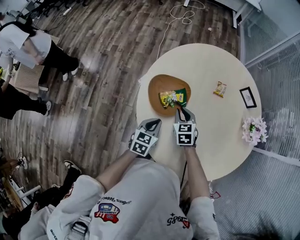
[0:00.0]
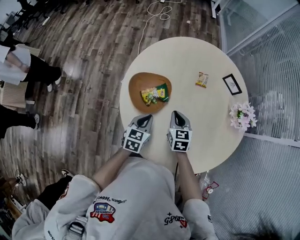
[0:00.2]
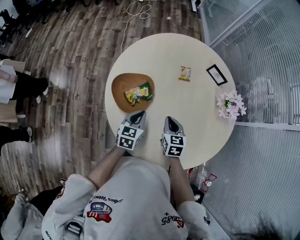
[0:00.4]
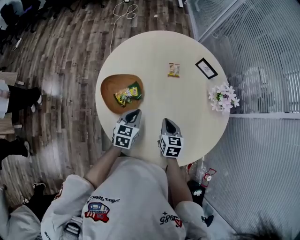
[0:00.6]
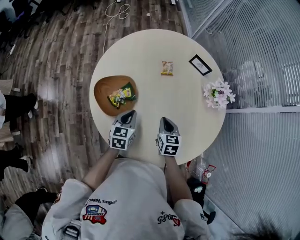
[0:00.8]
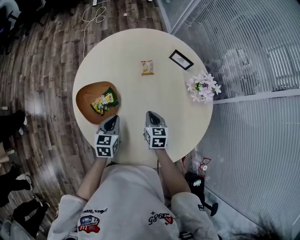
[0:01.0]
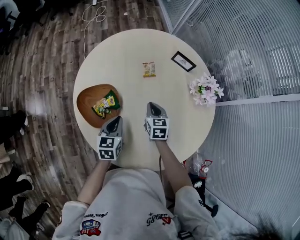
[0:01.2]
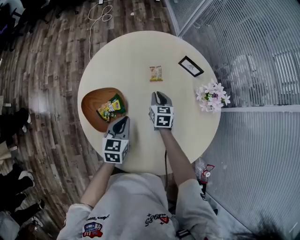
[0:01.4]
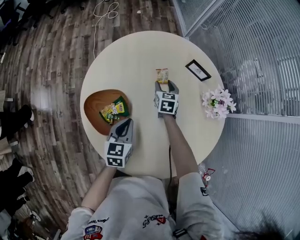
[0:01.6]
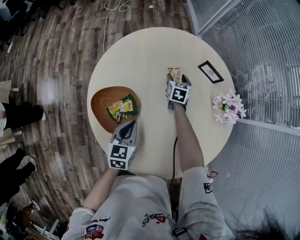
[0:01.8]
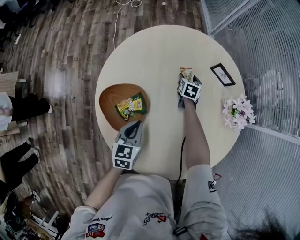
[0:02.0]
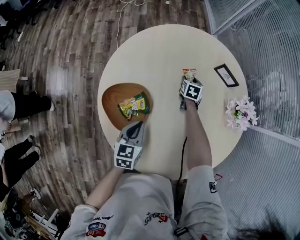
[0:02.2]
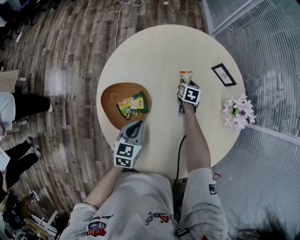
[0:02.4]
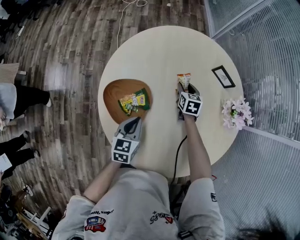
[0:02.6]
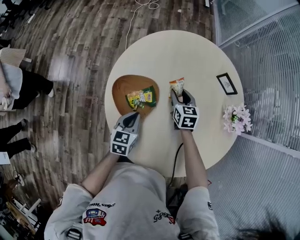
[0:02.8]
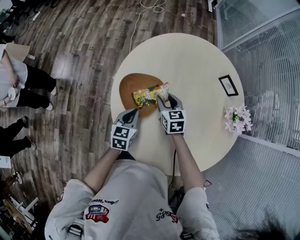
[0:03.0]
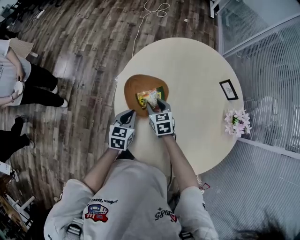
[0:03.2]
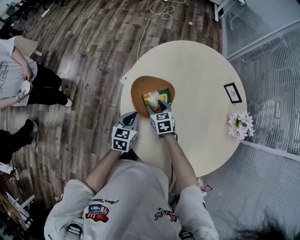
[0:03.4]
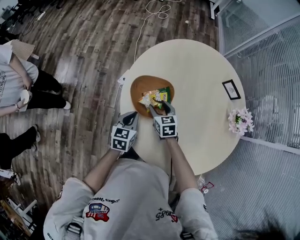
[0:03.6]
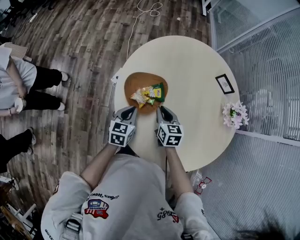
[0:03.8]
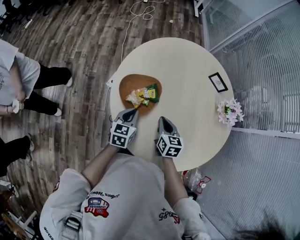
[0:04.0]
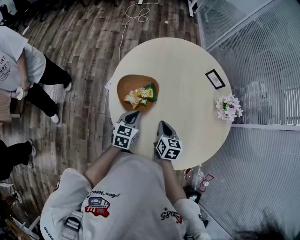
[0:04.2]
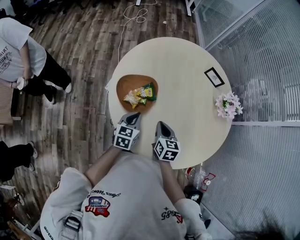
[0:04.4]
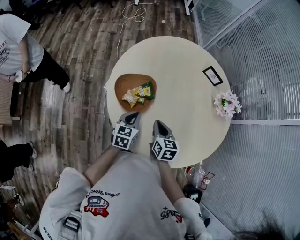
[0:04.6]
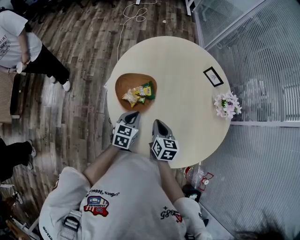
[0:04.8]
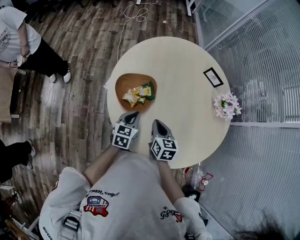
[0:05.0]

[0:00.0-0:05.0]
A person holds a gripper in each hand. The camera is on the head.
0:00.0 to 0:01.6: The right gripper shifts some 30 cm forward and to the right, changes its angle by some 30 degrees, and opens its fingers. Meanwhile the left gripper goes some 15 cm forward and to the right.
0:01.6 to 0:03.4: The right gripper goes up and down, roughly 15 cm each way, reversing 2 times, and rotates about 40 degrees. The left gripper shifts by approximately 20 cm.
0:03.4 to 0:05.0: The left gripper moves to the right, approximately 5 cm. Meanwhile the right gripper heads backward, to the right and upward, covering approximately 20 cm, rotates about 30 degrees, and closes up.

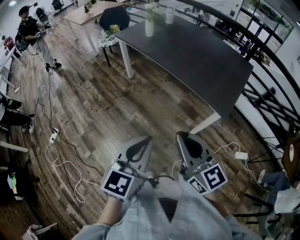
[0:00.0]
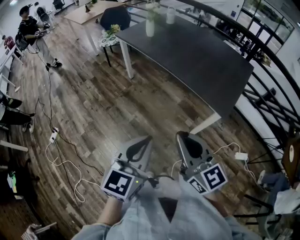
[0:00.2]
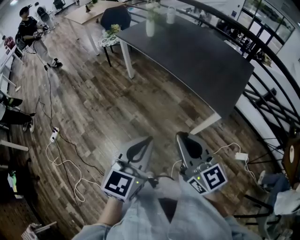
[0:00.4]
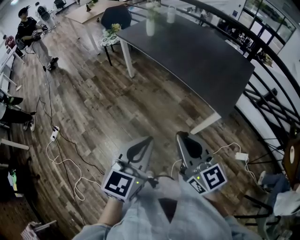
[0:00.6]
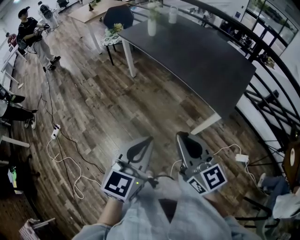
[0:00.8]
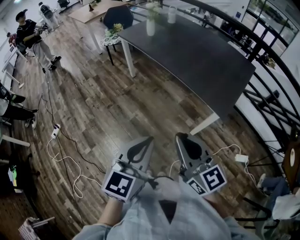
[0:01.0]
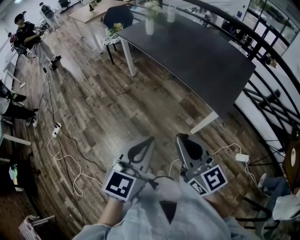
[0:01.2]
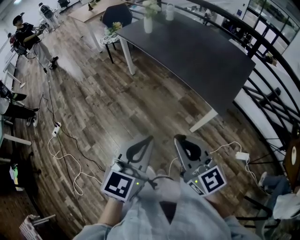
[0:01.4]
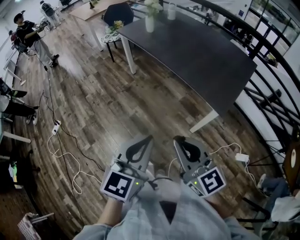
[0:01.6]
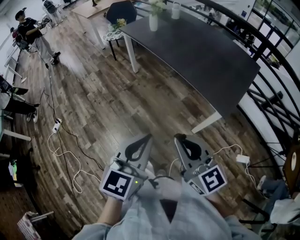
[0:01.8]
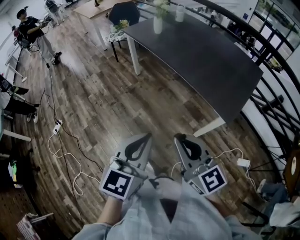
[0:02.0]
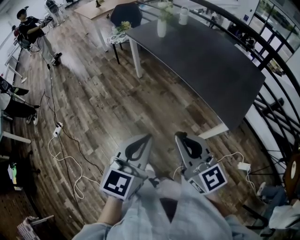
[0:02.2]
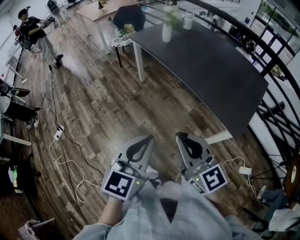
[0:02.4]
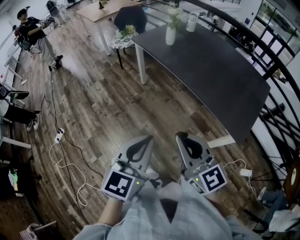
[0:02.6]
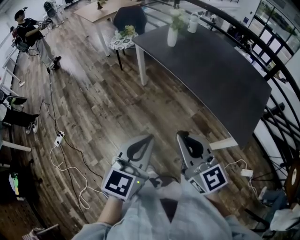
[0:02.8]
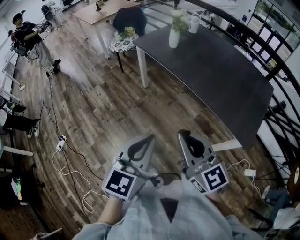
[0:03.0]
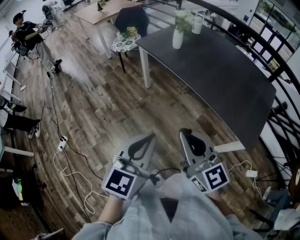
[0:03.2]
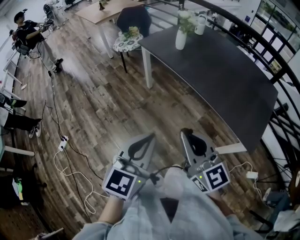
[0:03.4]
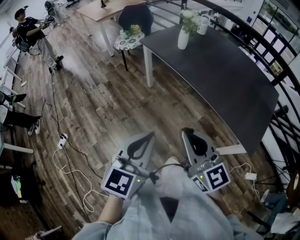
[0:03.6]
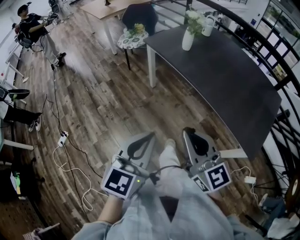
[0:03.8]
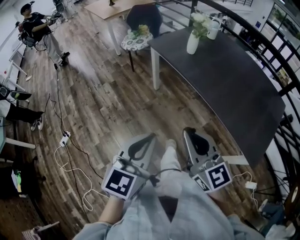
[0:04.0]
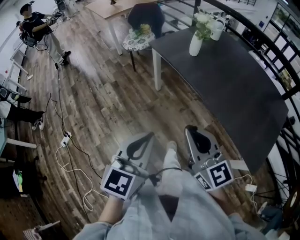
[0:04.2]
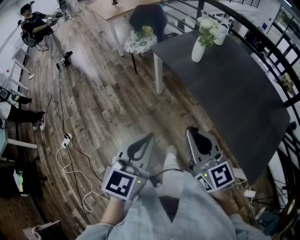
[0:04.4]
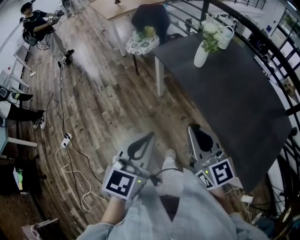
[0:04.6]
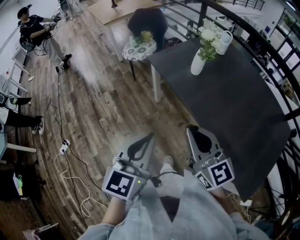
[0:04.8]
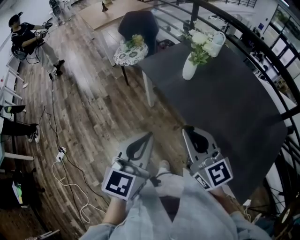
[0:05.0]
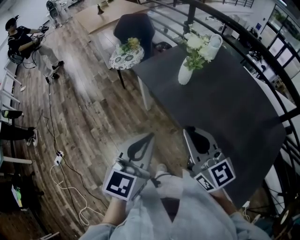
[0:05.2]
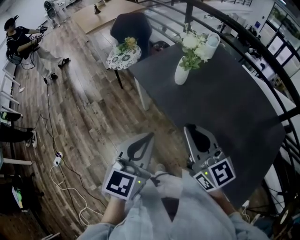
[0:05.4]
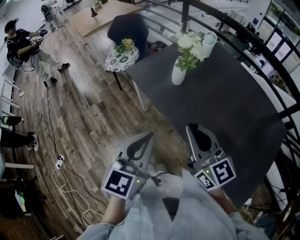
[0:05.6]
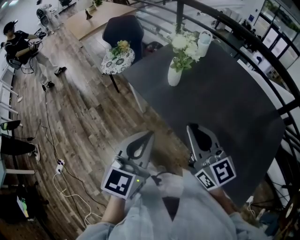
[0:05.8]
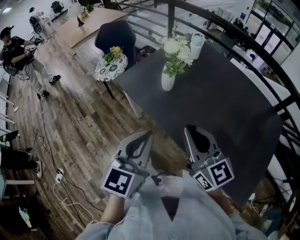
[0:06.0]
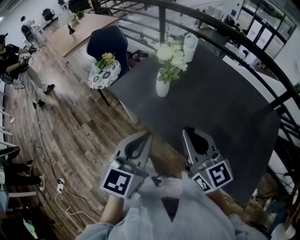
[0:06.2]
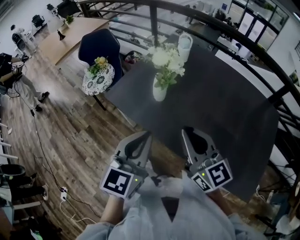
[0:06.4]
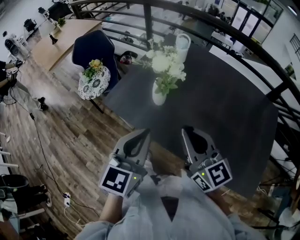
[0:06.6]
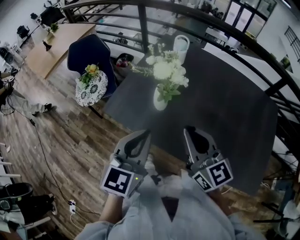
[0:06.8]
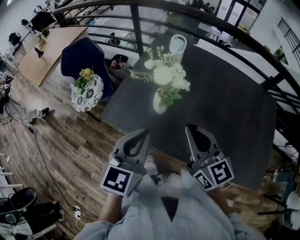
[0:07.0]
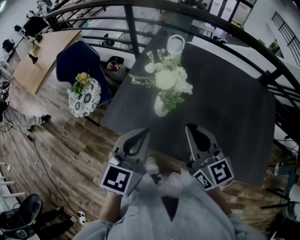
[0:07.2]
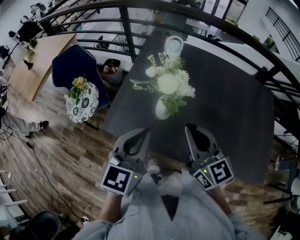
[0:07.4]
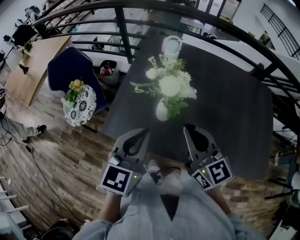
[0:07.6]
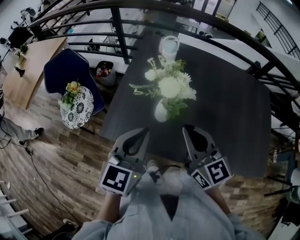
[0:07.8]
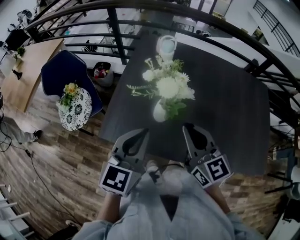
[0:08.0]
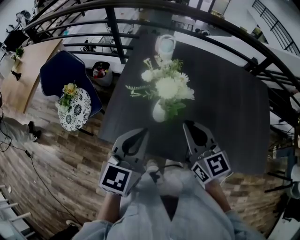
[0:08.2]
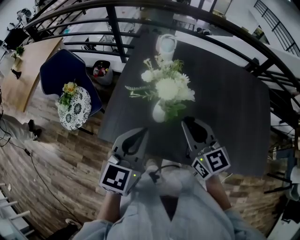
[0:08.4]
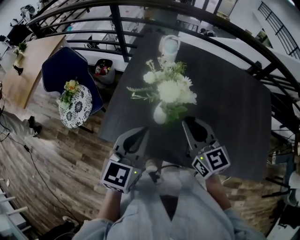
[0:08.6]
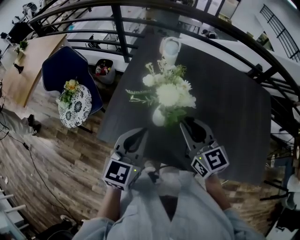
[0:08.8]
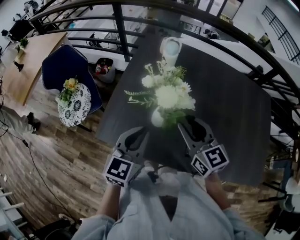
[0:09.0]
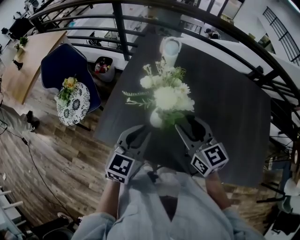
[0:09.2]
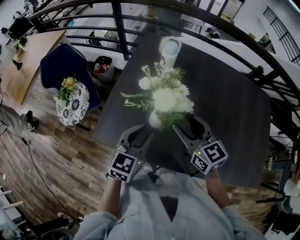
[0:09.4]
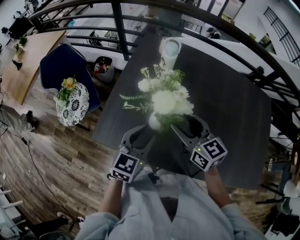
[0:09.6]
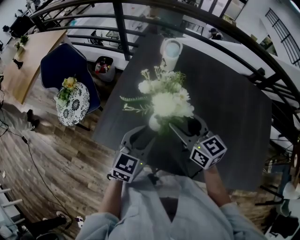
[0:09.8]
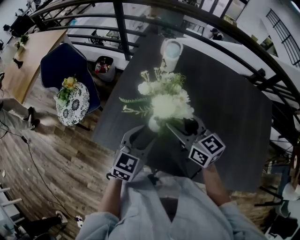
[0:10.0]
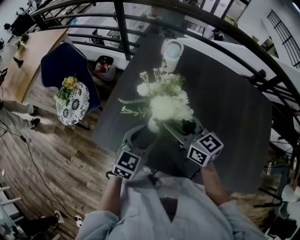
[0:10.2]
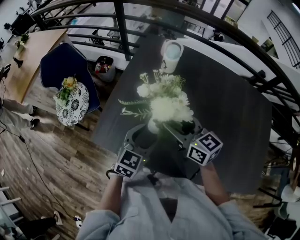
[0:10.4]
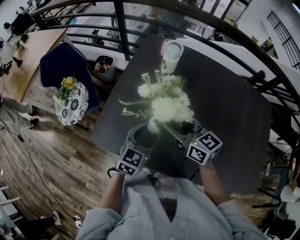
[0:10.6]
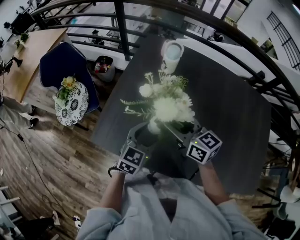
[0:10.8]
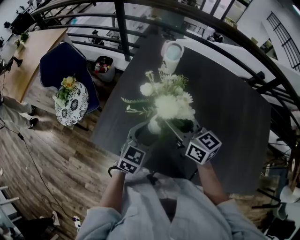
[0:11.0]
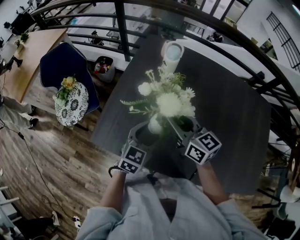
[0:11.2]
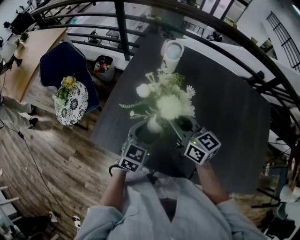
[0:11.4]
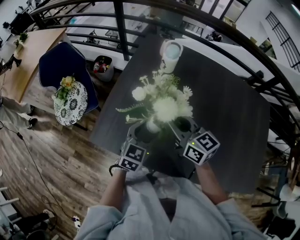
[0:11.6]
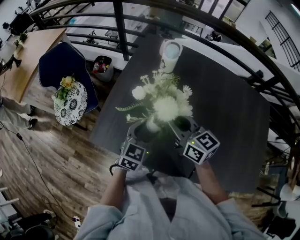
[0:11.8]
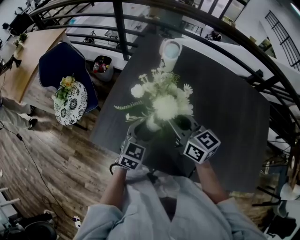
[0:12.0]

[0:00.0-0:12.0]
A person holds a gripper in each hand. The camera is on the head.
0:00.0 to 0:01.6: The left gripper goes approximately 5 cm to the right, while the right gripper ends up approximately 5 cm from where it was.
0:01.6 to 0:03.0: Both grippers travel together forward and to the left, some 30 cm.
0:03.0 to 0:04.4: Both grippers travel together forward, about 20 cm.
0:04.4 to 0:06.0: The grippers both shift forward and to the right by roughly 30 cm.
0:06.0 to 0:07.6: The right gripper ends up some 20 cm from where it was, and turns by roughly 30 degrees. Meanwhile the left gripper ends up approximately 25 cm from where it was, and rotates about 30 degrees.
0:07.6 to 0:09.0: The left gripper shifts some 5 cm downward, while the right gripper shifts roughly 10 cm forward and downward, and opens.
0:09.0 to 0:10.4: The left gripper is displaced downward by roughly 10 cm, and opens its fingers, while the right gripper travels forward by some 5 cm, and opens up.
0:10.4 to 0:12.0: The right gripper closes.

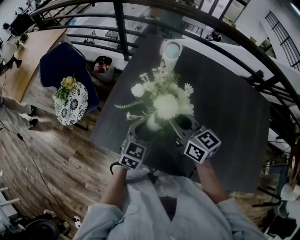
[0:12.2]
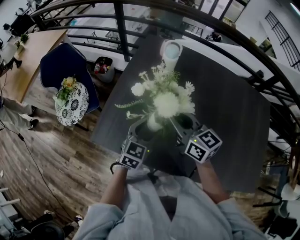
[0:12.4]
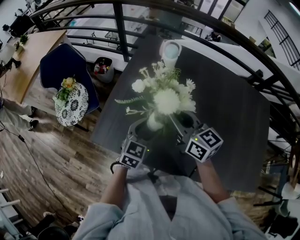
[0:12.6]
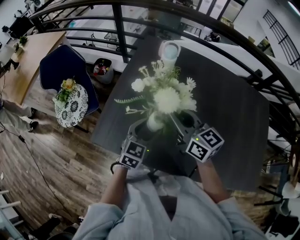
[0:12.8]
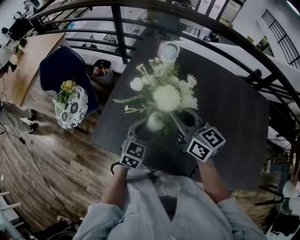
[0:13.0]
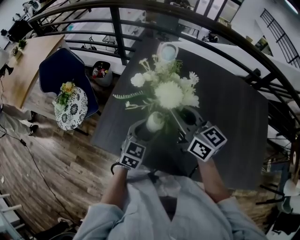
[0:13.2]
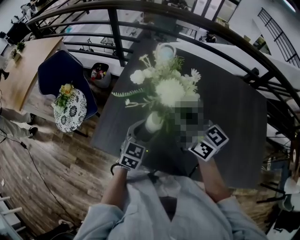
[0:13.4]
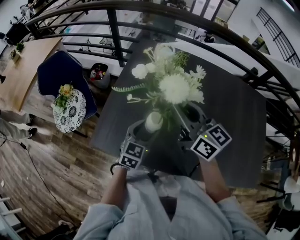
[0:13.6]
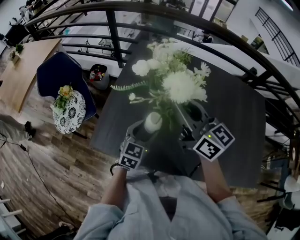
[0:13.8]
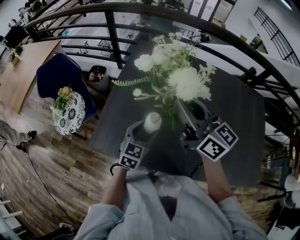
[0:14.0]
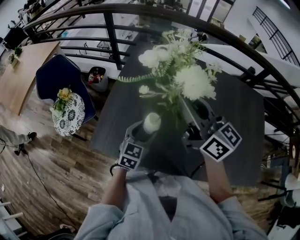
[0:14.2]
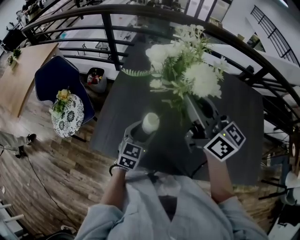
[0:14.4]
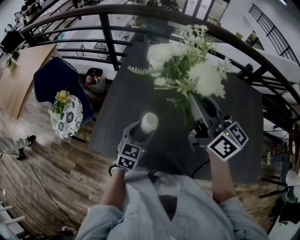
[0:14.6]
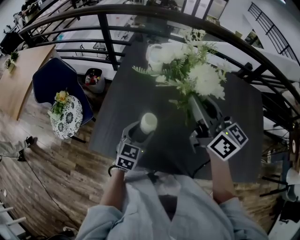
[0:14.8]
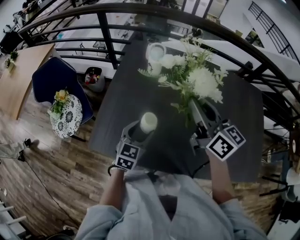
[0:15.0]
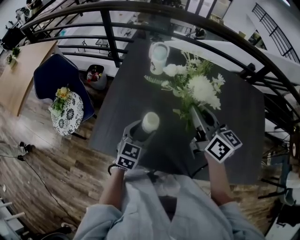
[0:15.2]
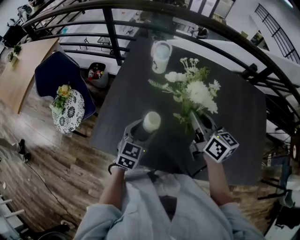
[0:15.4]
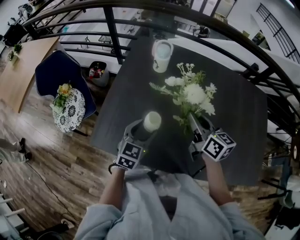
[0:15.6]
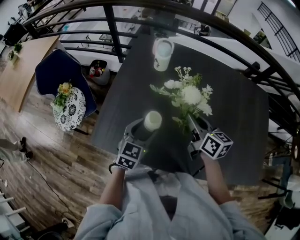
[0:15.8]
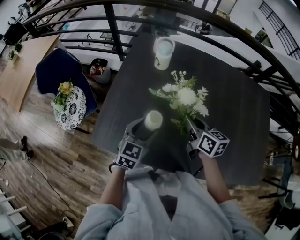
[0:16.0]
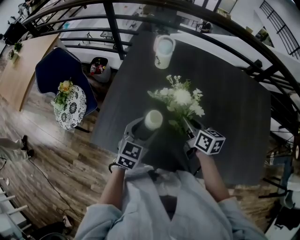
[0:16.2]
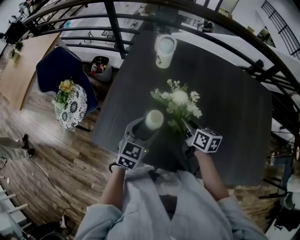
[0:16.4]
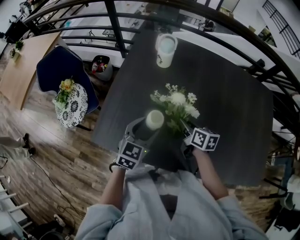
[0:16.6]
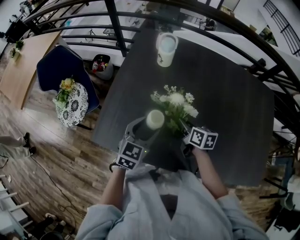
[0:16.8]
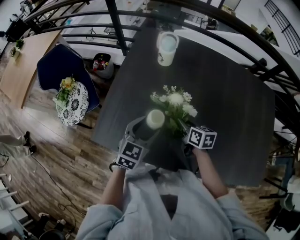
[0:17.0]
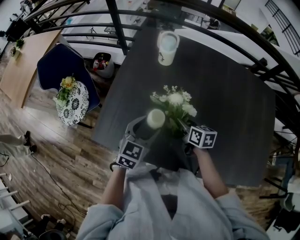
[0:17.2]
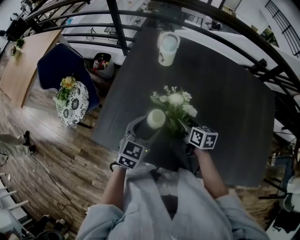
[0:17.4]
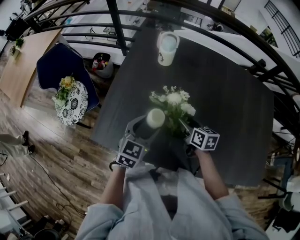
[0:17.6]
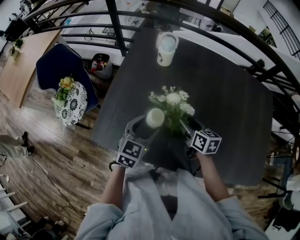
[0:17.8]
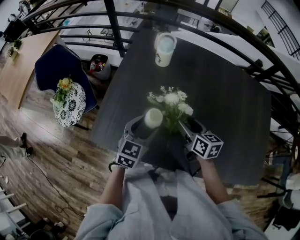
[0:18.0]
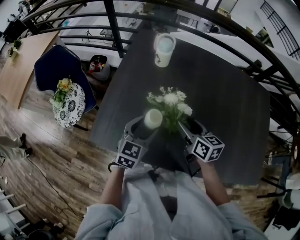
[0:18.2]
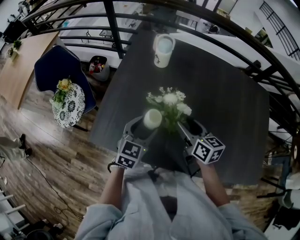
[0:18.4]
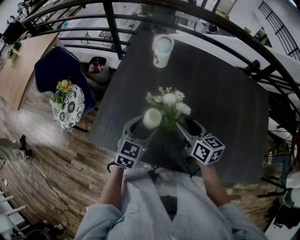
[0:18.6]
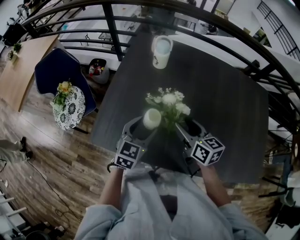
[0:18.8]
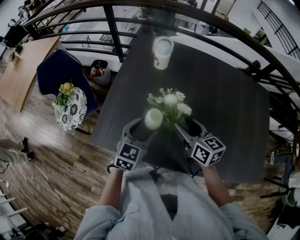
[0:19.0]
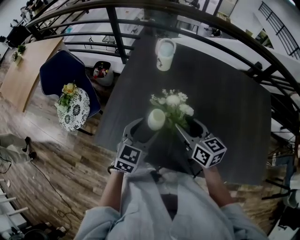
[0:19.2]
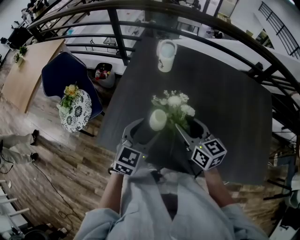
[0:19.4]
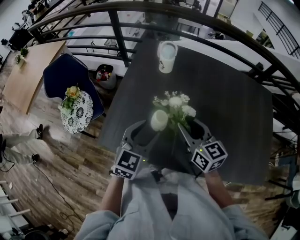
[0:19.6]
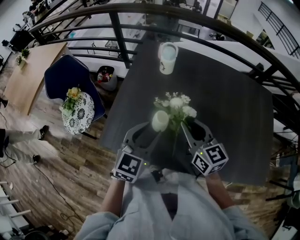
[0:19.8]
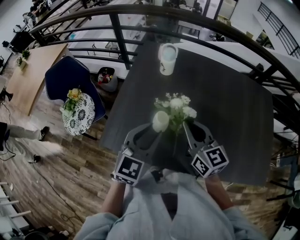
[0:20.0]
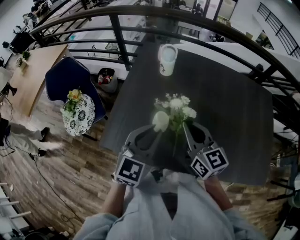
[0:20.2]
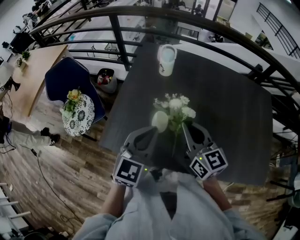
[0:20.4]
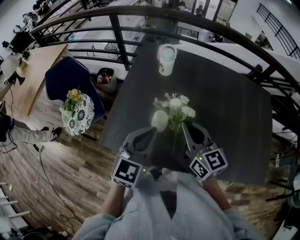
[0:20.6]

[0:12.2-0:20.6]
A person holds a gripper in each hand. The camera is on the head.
0:12.2 to 0:13.6: The right gripper travels upward by approximately 10 cm.
0:13.6 to 0:15.0: The right gripper travels to the right by roughly 10 cm.
0:15.0 to 0:16.4: The right gripper is displaced downward by approximately 25 cm, and turns by some 30 degrees.
0:16.4 to 0:17.8: The right gripper opens.
0:17.8 to 0:19.2: The right gripper goes about 10 cm upward.
0:19.2 to 0:20.6: The grippers both shift upward by approximately 10 cm. The left gripper closes its fingers, while the right gripper closes.
